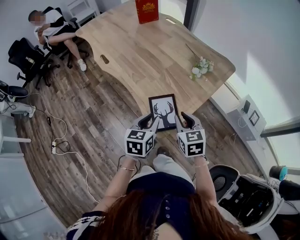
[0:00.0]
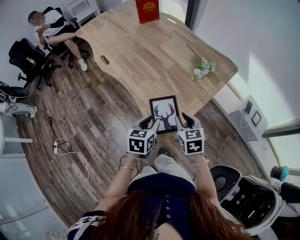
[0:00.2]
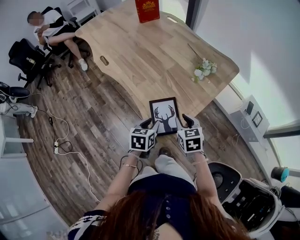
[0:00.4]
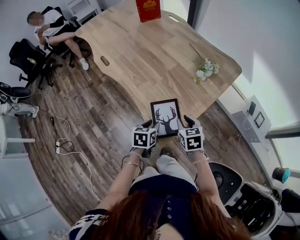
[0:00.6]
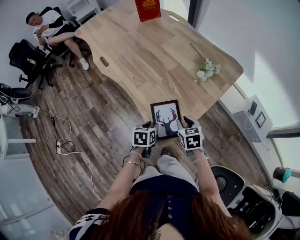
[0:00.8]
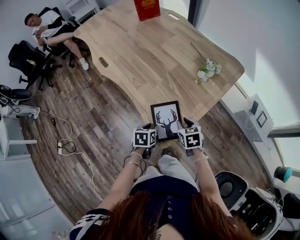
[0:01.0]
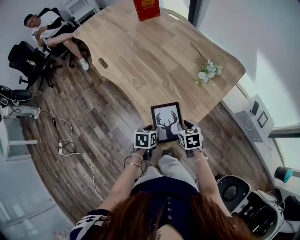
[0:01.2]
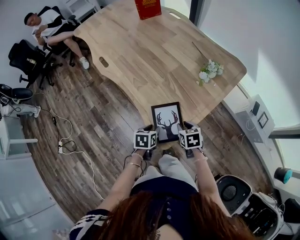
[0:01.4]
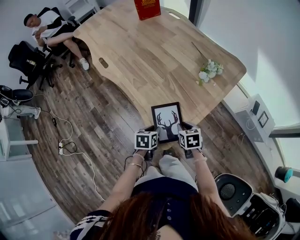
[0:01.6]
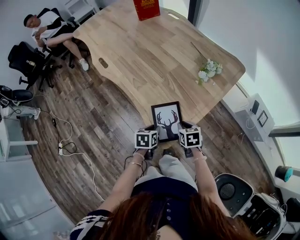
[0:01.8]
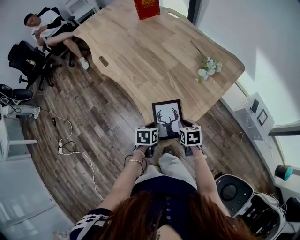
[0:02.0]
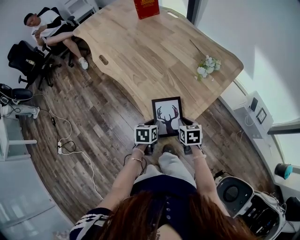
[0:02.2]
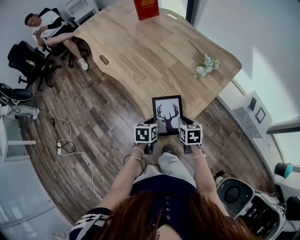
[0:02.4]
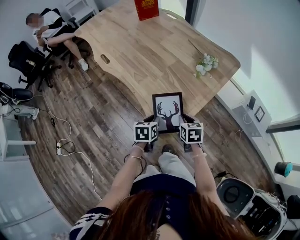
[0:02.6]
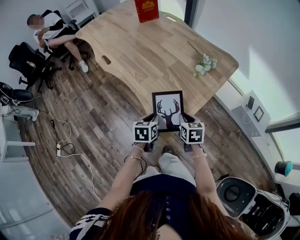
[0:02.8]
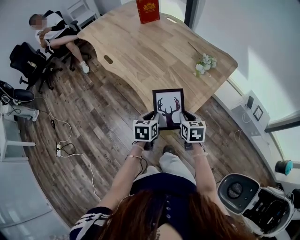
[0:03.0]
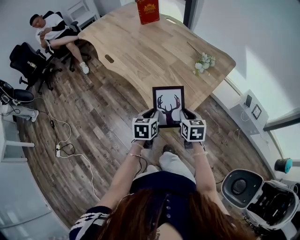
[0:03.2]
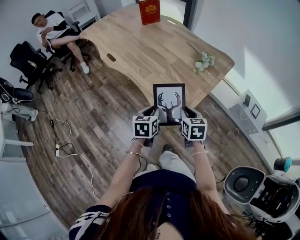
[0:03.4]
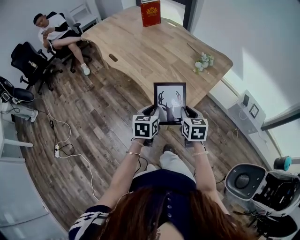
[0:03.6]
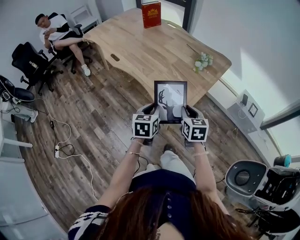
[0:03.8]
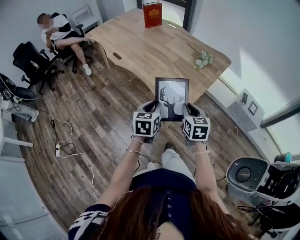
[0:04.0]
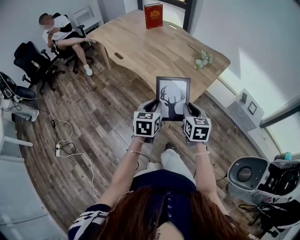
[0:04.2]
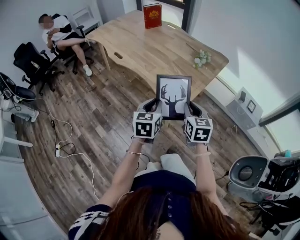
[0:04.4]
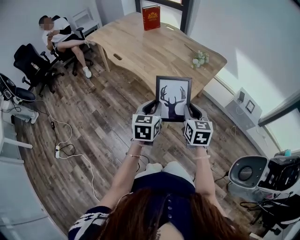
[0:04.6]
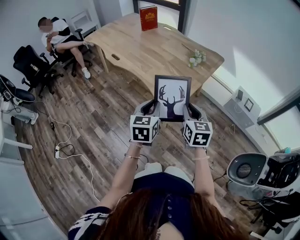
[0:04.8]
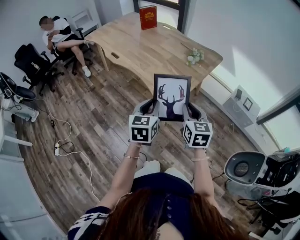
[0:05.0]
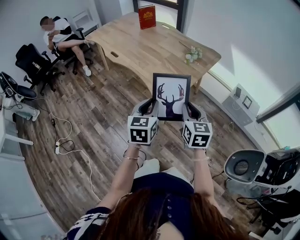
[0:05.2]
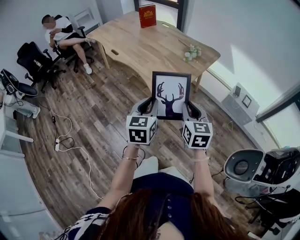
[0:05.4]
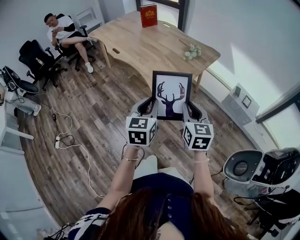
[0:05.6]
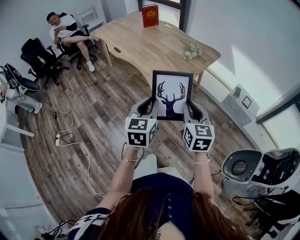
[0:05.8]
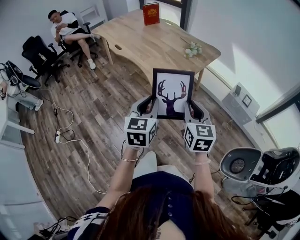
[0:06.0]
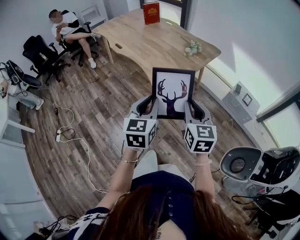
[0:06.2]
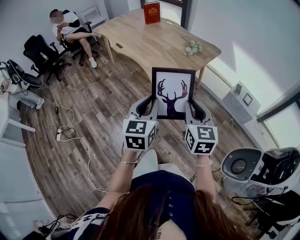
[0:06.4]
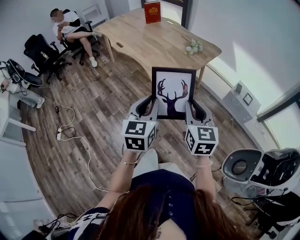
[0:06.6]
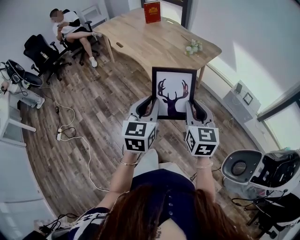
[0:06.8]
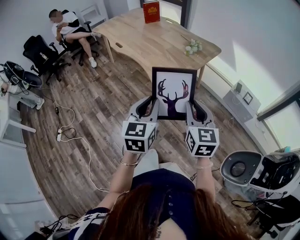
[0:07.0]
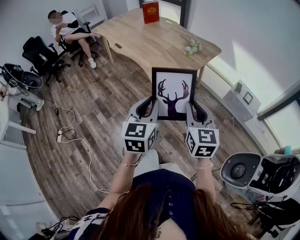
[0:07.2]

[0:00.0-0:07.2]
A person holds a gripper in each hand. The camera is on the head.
0:00.0 to 0:01.4: The grippers both shift downward by about 15 cm. The right gripper changes its angle by about 20 degrees. The left gripper rotates about 30 degrees.
0:01.4 to 0:02.8: Both grippers move upward, roughly 5 cm.
0:02.8 to 0:04.4: The grippers both shift upward and backward by roughly 20 cm. The right gripper swivels some 20 degrees. Meanwhile the left gripper swivels some 20 degrees.
0:04.4 to 0:05.8: The left gripper is displaced backward, upward and to the right by roughly 15 cm, while the right gripper goes roughly 15 cm backward, to the right and upward.
0:05.8 to 0:07.2: The grippers stay close to where they were, moving slightly.

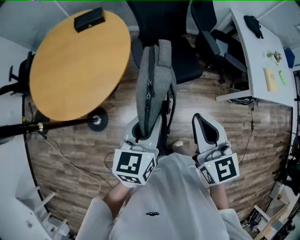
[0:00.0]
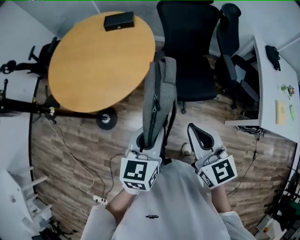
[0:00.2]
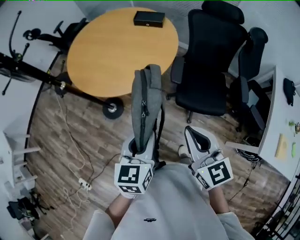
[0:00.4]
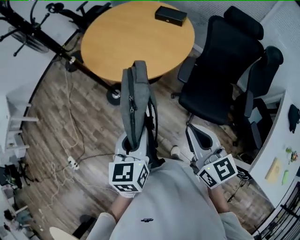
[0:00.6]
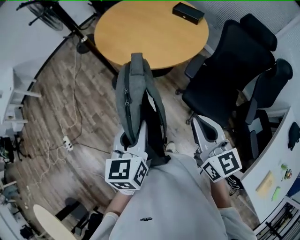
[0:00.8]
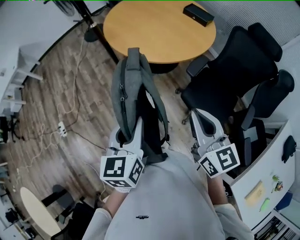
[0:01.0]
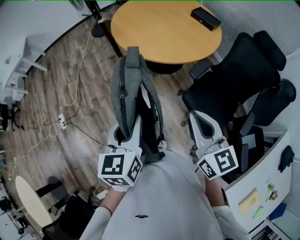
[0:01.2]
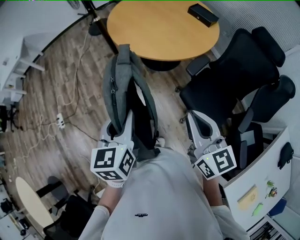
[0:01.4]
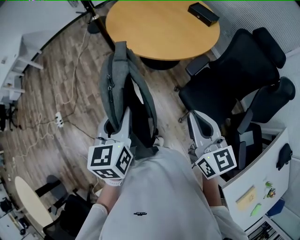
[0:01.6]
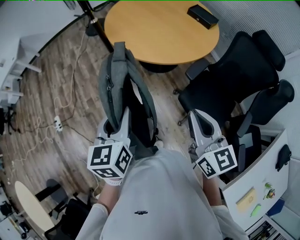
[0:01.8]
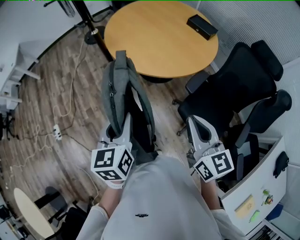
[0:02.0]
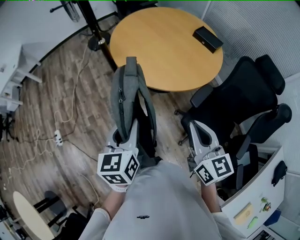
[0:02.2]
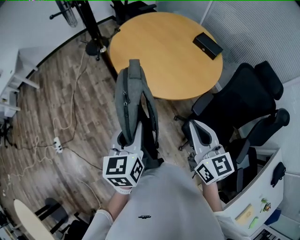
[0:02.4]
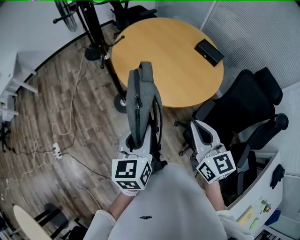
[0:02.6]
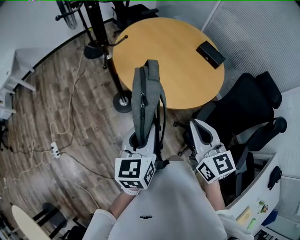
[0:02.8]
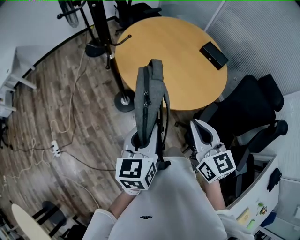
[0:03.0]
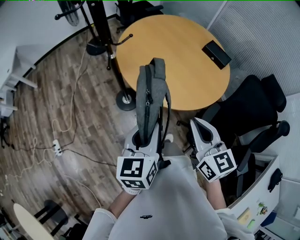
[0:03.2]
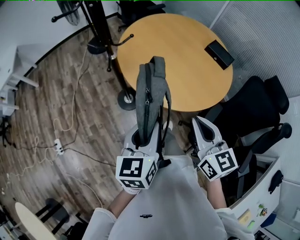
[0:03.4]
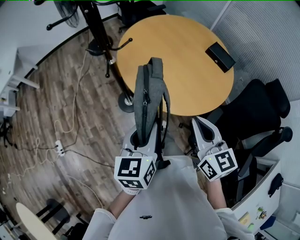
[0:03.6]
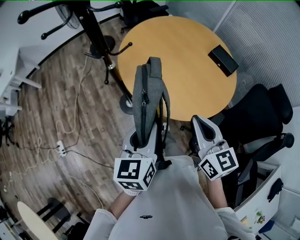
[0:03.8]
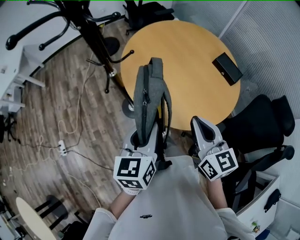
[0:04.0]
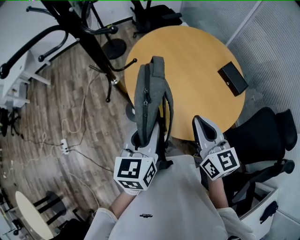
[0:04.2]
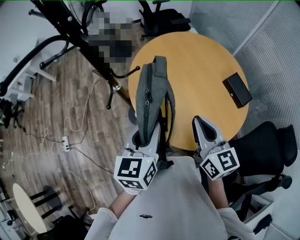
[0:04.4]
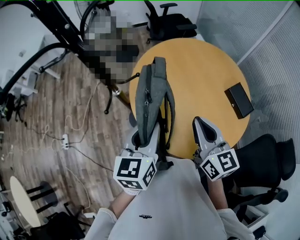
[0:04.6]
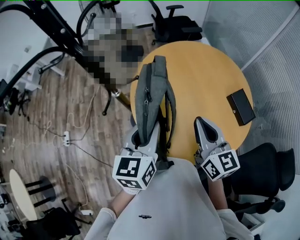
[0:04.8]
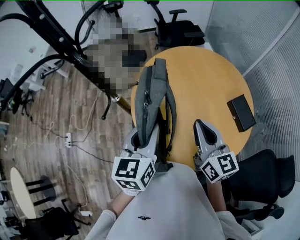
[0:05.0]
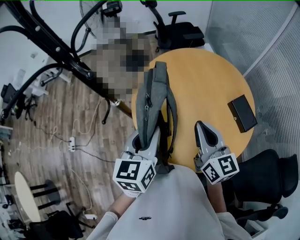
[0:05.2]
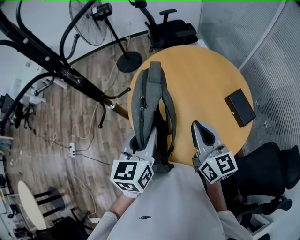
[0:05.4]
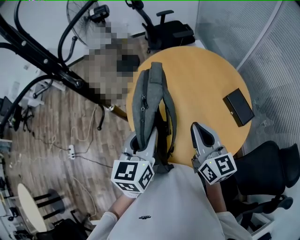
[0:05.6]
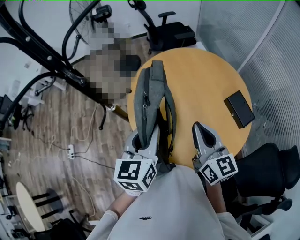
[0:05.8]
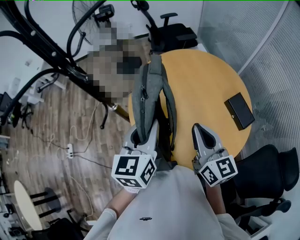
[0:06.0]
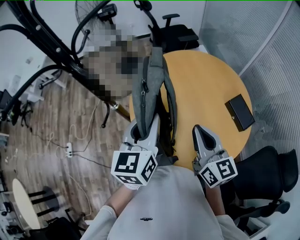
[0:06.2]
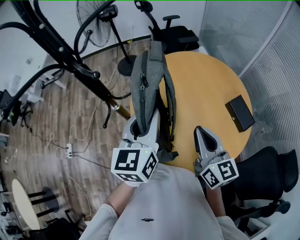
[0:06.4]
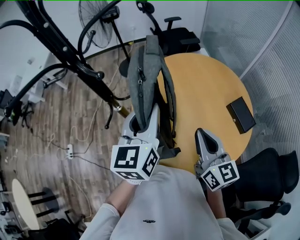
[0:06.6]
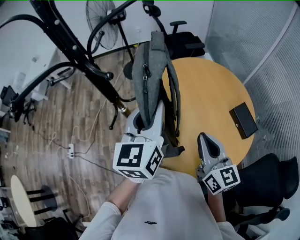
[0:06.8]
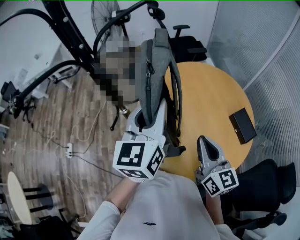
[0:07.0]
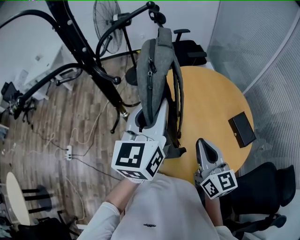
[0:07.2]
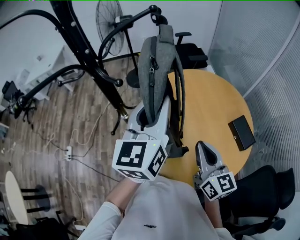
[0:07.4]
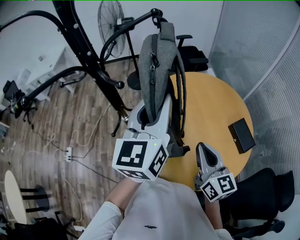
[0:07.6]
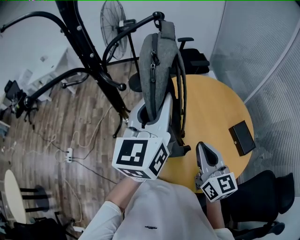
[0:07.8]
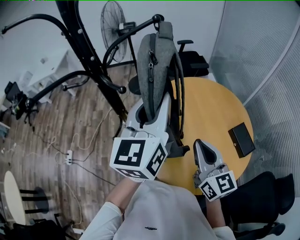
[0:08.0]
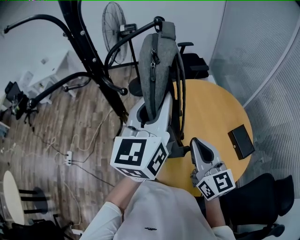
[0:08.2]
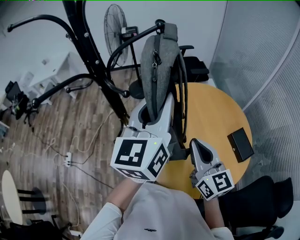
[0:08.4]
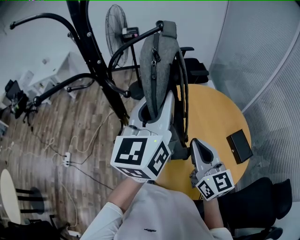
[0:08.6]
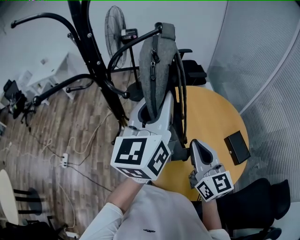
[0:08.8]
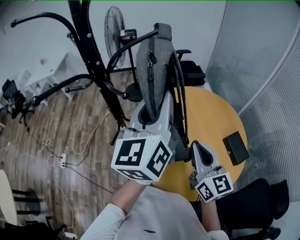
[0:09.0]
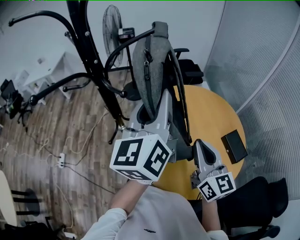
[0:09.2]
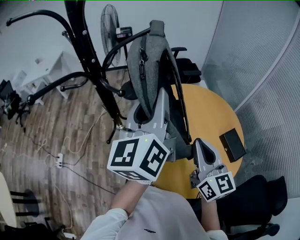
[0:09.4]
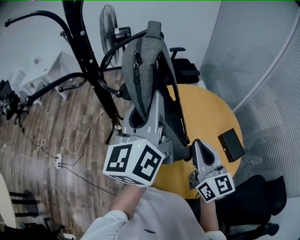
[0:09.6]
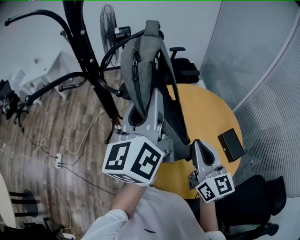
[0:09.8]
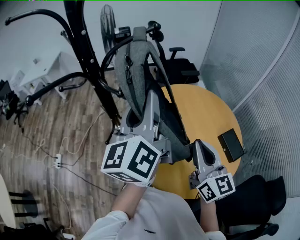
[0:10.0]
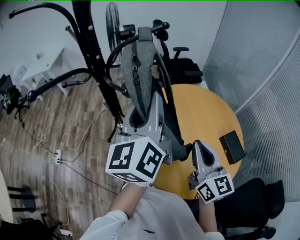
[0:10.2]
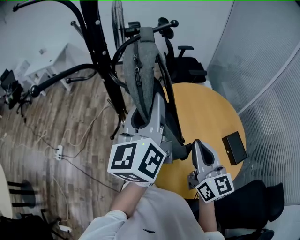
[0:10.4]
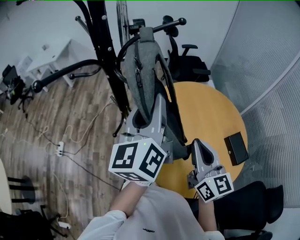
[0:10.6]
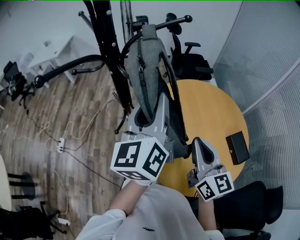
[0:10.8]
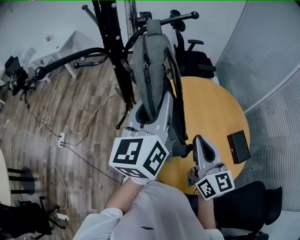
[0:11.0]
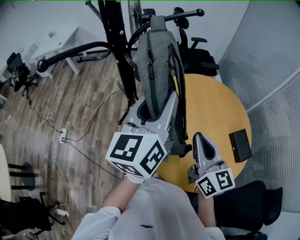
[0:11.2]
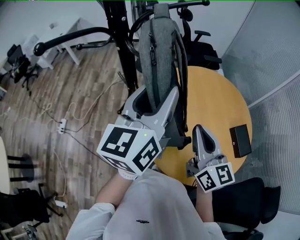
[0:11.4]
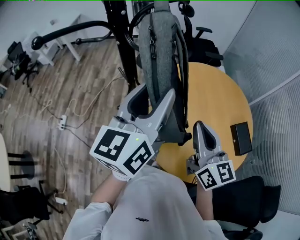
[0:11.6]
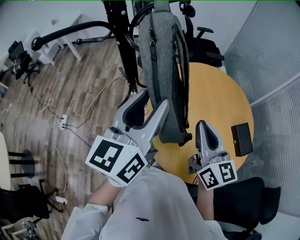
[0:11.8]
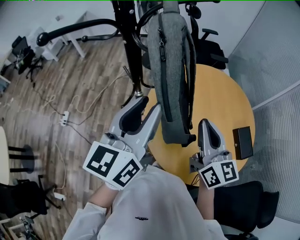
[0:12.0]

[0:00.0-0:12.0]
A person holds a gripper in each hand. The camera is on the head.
0:00.0 to 0:01.6: The left gripper shifts by some 10 cm, and swivels some 70 degrees; the right gripper changes place by some 10 cm, and swivels some 60 degrees.
0:01.6 to 0:03.0: The left gripper goes approximately 20 cm forward. The right gripper shifts approximately 25 cm forward and to the left.
0:03.0 to 0:04.4: The grippers both shift forward by about 25 cm.
0:04.4 to 0:06.0: The right gripper shifts roughly 10 cm forward and to the right. The left gripper moves forward, approximately 10 cm.
0:06.0 to 0:07.6: The left gripper goes about 15 cm upward, and turns by about 20 degrees.
0:07.6 to 0:09.0: The right gripper heads upward, covering some 5 cm.
0:09.0 to 0:10.4: The left gripper moves roughly 5 cm.
0:10.4 to 0:12.0: The left gripper shifts approximately 10 cm backward and downward.

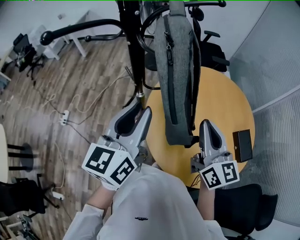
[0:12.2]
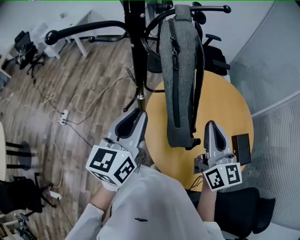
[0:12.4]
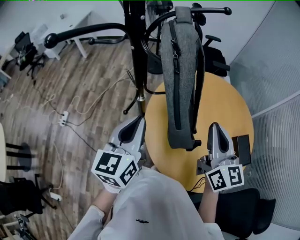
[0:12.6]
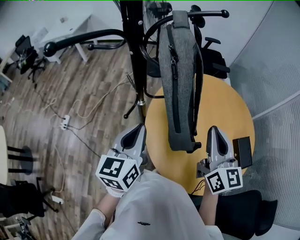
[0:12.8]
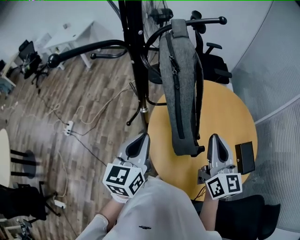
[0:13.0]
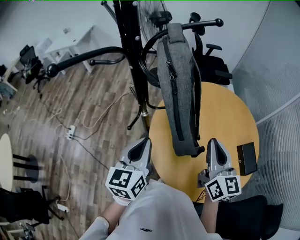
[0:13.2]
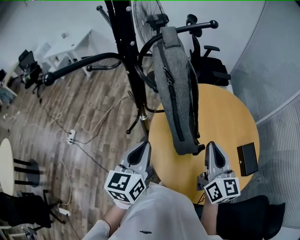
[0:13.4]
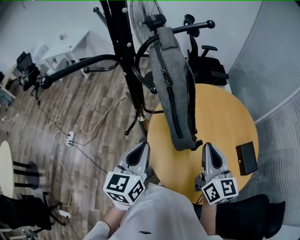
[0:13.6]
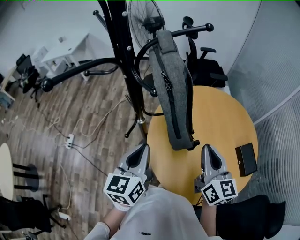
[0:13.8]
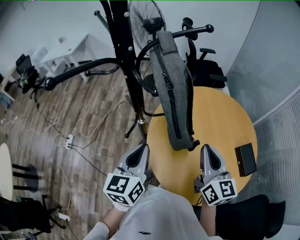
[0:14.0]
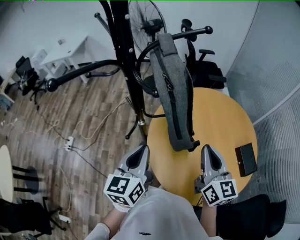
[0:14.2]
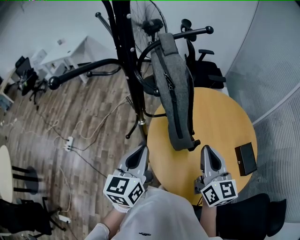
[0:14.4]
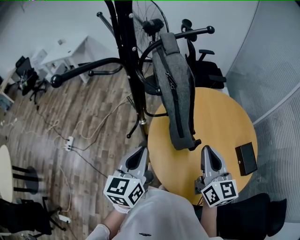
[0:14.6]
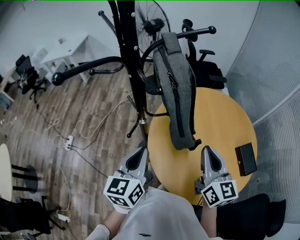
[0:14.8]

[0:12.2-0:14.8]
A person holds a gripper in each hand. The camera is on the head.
0:12.2 to 0:13.4: The left gripper shifts some 10 cm downward, and closes up.
0:13.4 to 0:14.8: The grippers make only small movements.

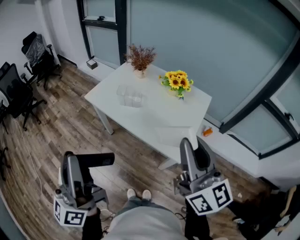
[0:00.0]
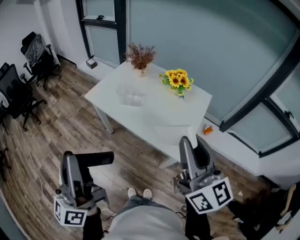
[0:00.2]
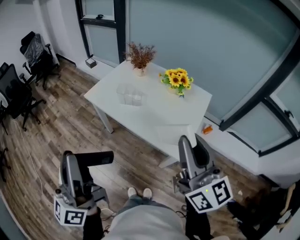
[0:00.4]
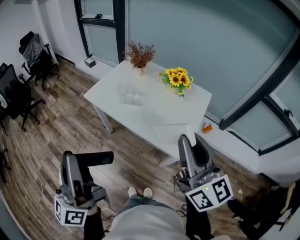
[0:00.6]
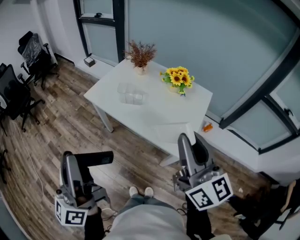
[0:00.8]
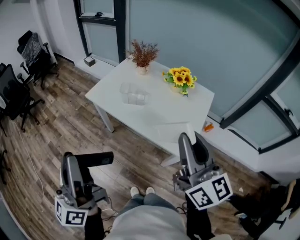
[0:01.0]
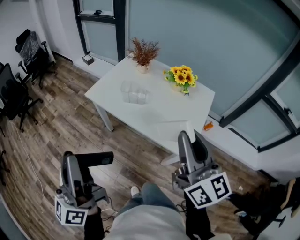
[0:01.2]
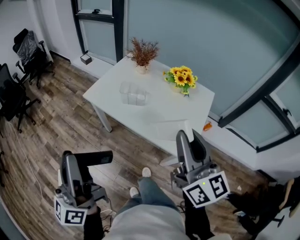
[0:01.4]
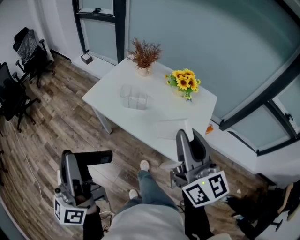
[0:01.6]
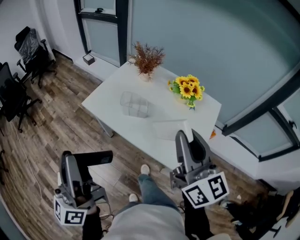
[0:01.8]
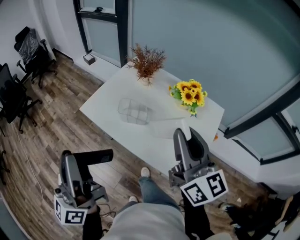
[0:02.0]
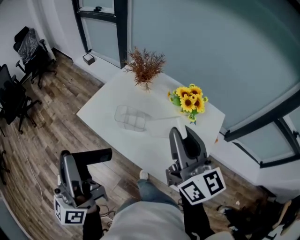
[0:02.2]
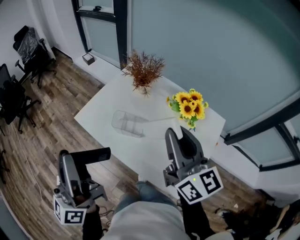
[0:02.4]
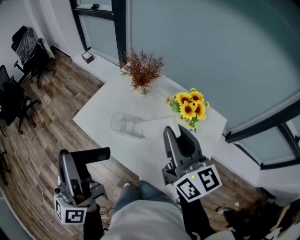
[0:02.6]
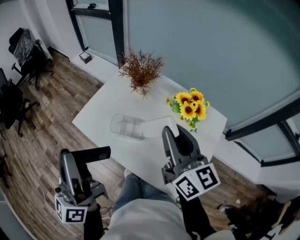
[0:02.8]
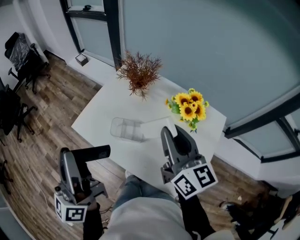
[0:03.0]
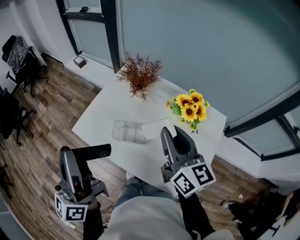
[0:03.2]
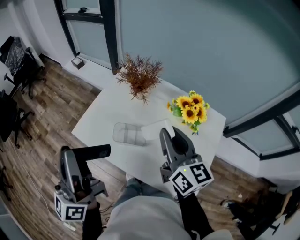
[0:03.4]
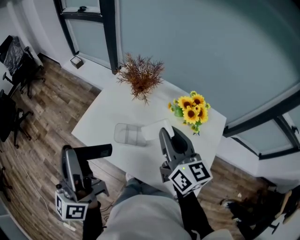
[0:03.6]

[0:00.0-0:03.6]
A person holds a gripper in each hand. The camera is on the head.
0:00.0 to 0:01.8: The grippers both shift forward by approximately 15 cm.
0:01.8 to 0:03.6: The two grippers go approximately 25 cm forward.
